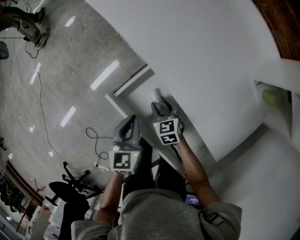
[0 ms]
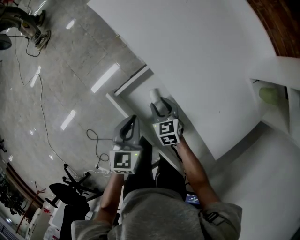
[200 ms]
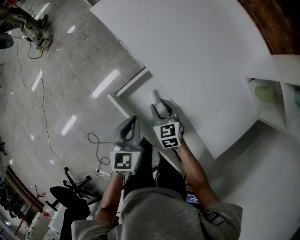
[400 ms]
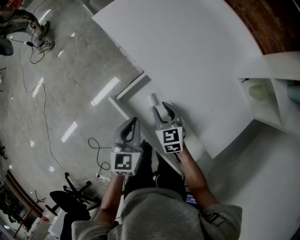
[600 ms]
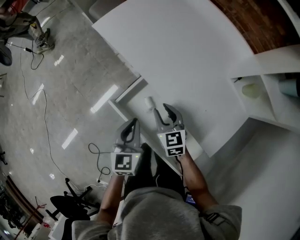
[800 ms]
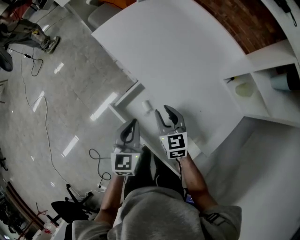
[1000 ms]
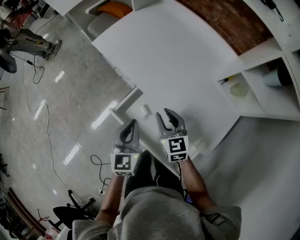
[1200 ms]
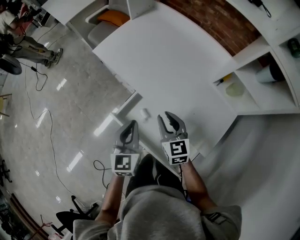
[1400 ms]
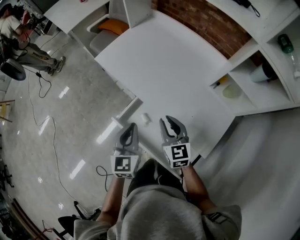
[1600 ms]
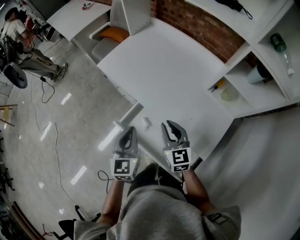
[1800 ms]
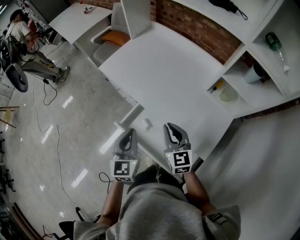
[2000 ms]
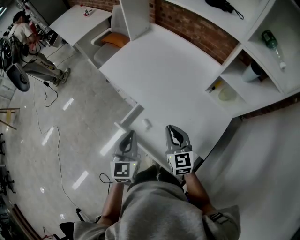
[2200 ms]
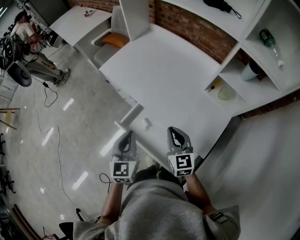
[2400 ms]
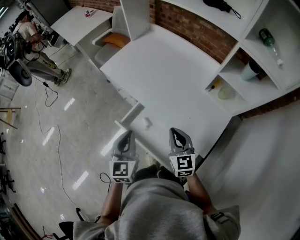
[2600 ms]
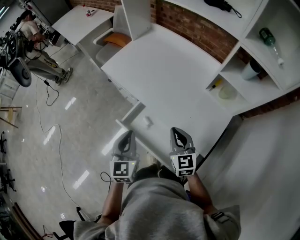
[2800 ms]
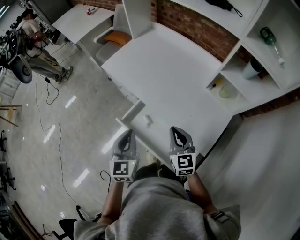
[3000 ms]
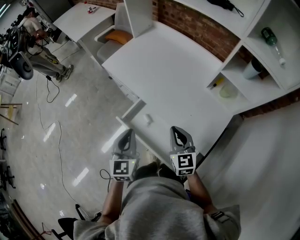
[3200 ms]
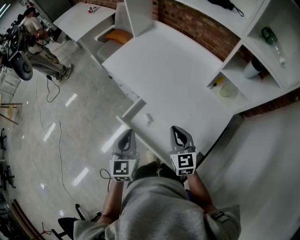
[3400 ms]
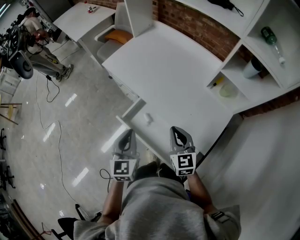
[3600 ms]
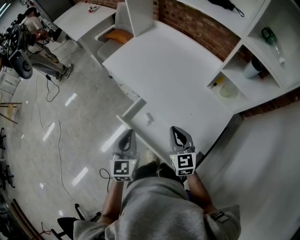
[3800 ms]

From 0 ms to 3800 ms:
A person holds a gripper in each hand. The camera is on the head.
From 0 ms to 1200 ms: The right gripper heads upward, covering approximately 25 cm, and changes its angle by roughly 20 degrees, while the left gripper moves upward, some 15 cm.
From 1200 ms to 2600 ms: The left gripper shifts about 10 cm upward and backward. The right gripper travels upward, backward and to the right by some 15 cm, and closes its fingers.
From 2600 ms to 3800 ms: The grippers make only small movements.

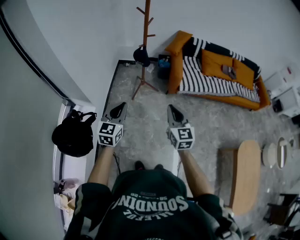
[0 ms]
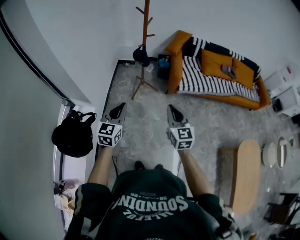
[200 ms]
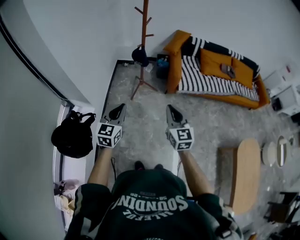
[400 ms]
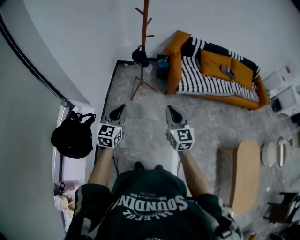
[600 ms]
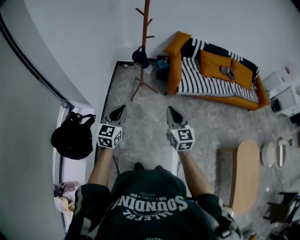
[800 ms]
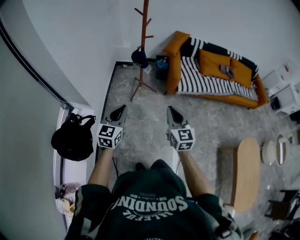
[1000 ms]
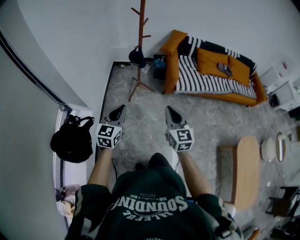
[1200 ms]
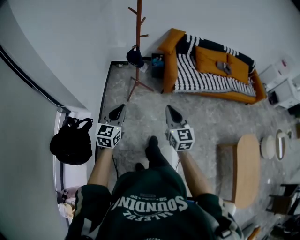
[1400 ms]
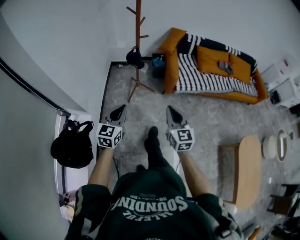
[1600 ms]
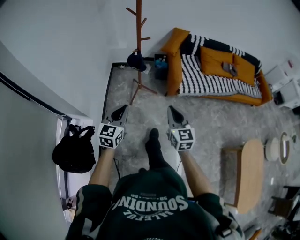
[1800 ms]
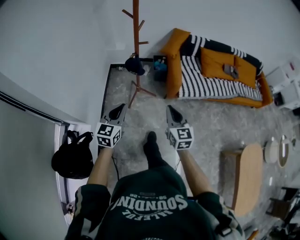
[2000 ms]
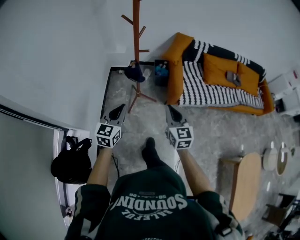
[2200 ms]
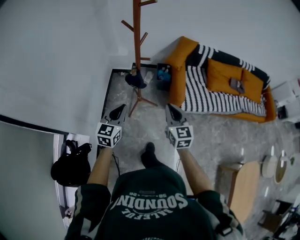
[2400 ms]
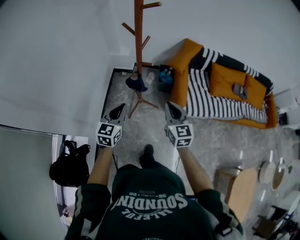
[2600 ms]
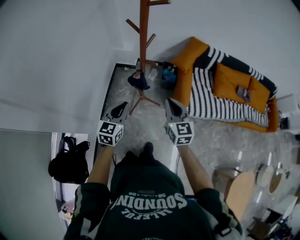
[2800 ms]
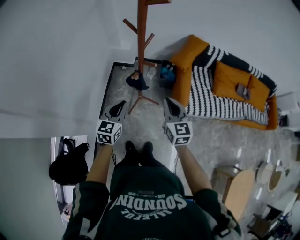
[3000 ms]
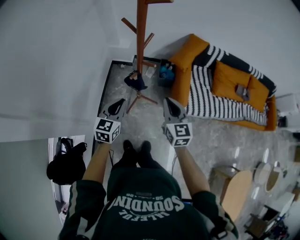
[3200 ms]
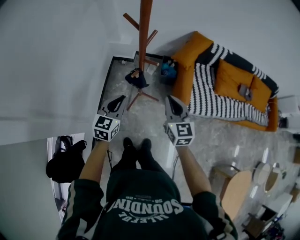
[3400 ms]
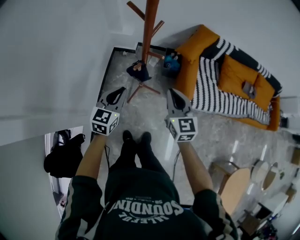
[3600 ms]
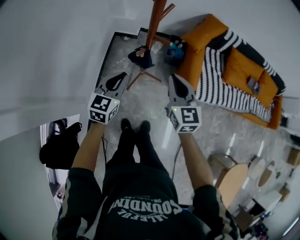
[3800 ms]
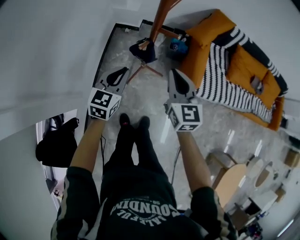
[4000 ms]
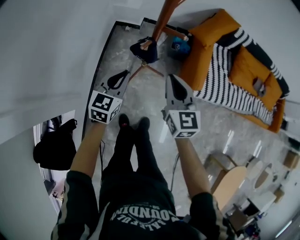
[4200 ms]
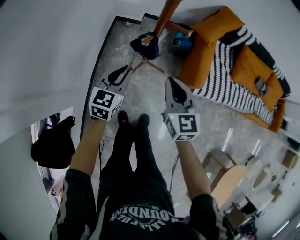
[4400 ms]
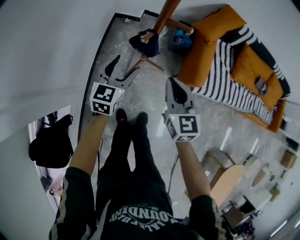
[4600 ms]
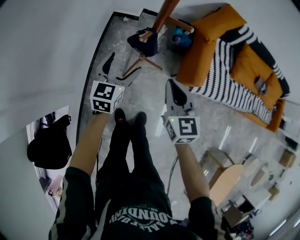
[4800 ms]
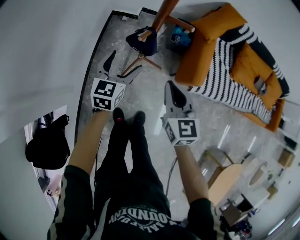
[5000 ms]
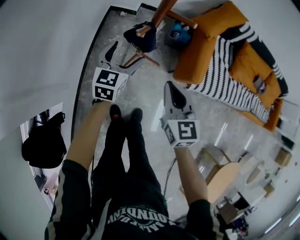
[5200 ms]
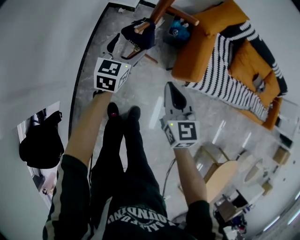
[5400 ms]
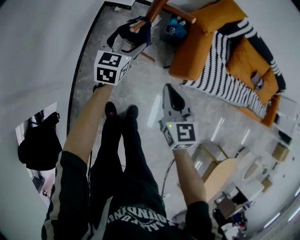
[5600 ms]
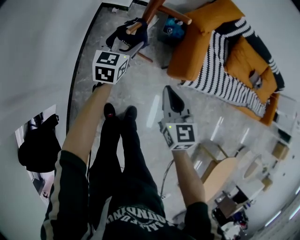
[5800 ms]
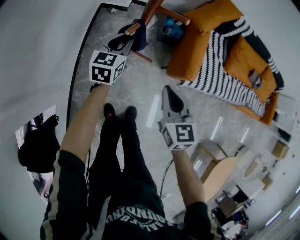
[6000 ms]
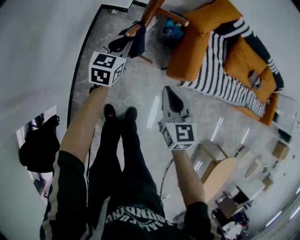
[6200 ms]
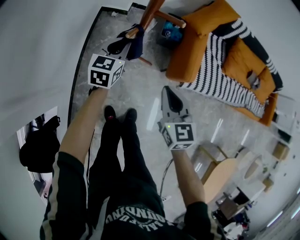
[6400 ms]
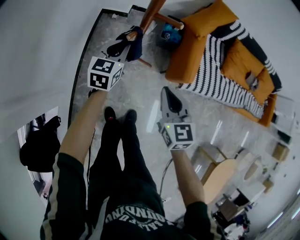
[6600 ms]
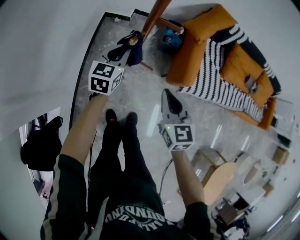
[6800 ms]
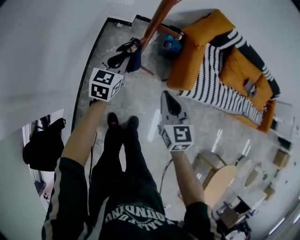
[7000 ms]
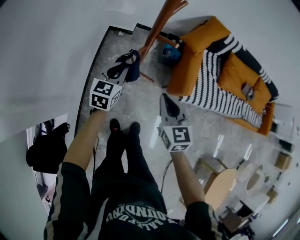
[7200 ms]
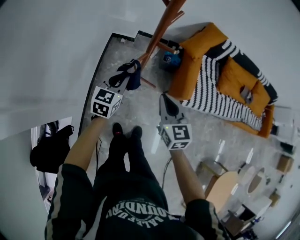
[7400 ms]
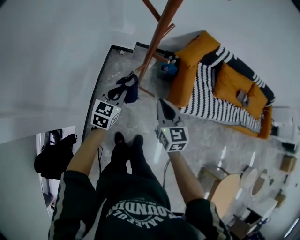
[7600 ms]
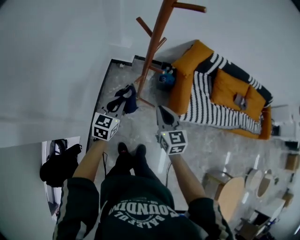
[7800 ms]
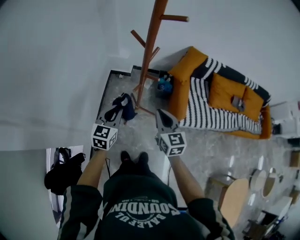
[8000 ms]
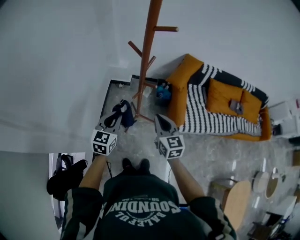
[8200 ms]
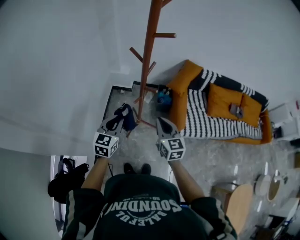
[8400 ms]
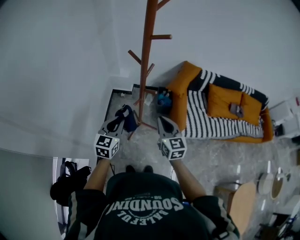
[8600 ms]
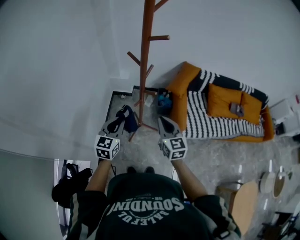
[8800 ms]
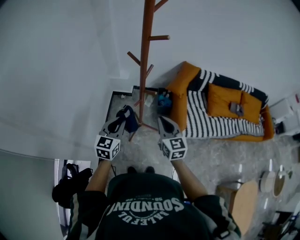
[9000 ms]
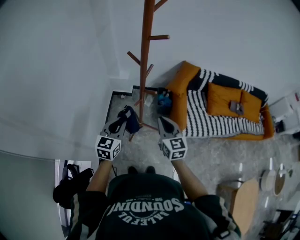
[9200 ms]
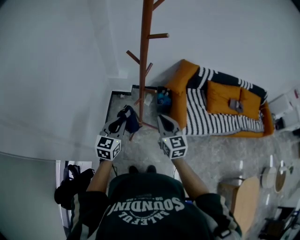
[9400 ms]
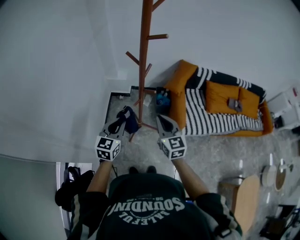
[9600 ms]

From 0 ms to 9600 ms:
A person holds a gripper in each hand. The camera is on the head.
From 0 ms to 1600 ms: The grippers stay close to where they were, moving slightly.
From 1600 ms to 3200 ms: The two grippers go roughly 20 cm forward.
From 3200 ms to 4800 ms: The grippers both shift downward by approximately 10 cm. The left gripper opens.
From 4800 ms to 6400 ms: The left gripper travels forward by roughly 5 cm, and closes.
From 6400 ms to 8000 ms: The left gripper moves upward, backward and to the left, some 15 cm; the right gripper goes approximately 5 cm upward.
From 8000 ms to 9600 ms: The grippers make only small movements.

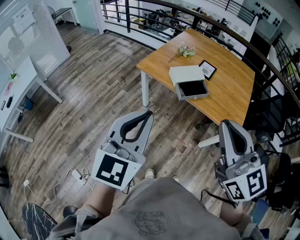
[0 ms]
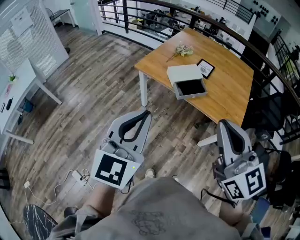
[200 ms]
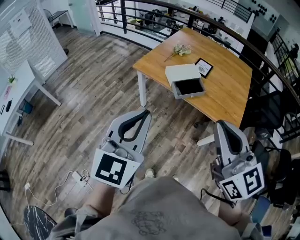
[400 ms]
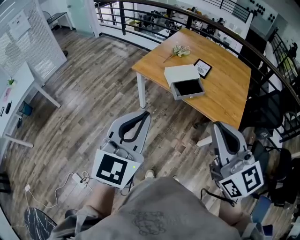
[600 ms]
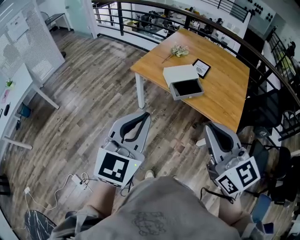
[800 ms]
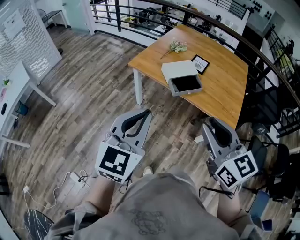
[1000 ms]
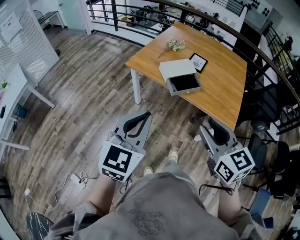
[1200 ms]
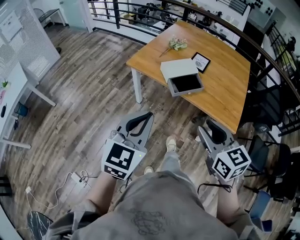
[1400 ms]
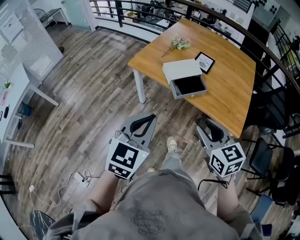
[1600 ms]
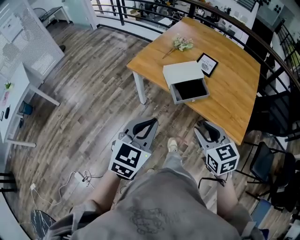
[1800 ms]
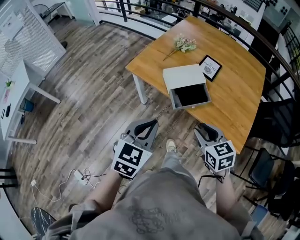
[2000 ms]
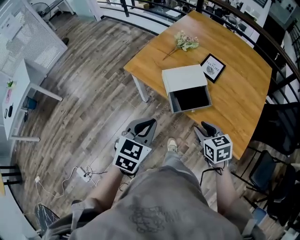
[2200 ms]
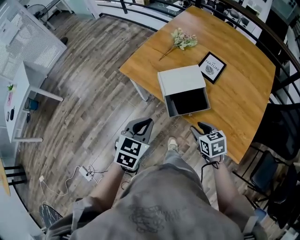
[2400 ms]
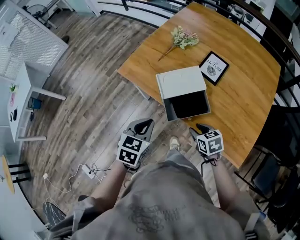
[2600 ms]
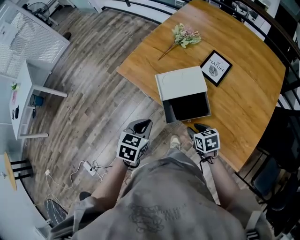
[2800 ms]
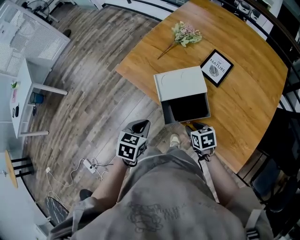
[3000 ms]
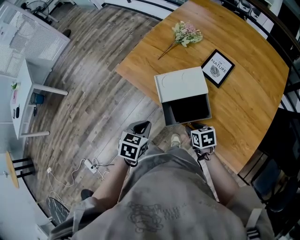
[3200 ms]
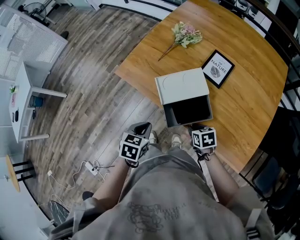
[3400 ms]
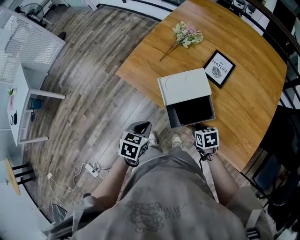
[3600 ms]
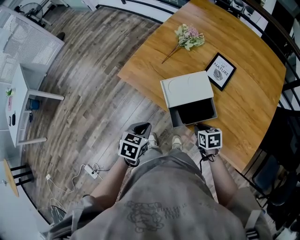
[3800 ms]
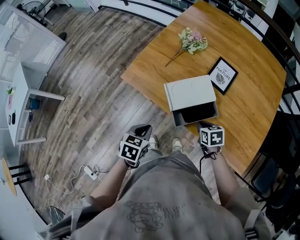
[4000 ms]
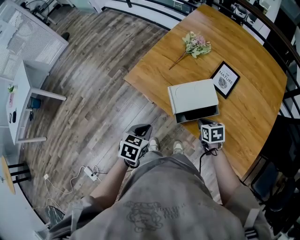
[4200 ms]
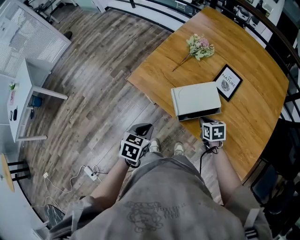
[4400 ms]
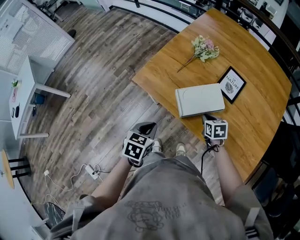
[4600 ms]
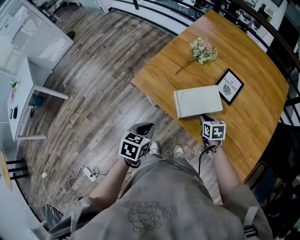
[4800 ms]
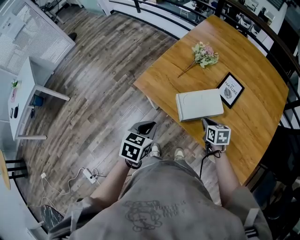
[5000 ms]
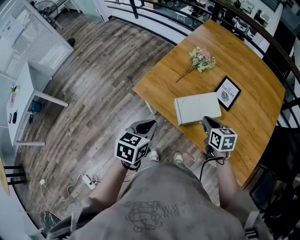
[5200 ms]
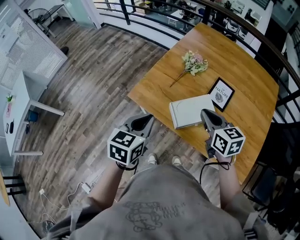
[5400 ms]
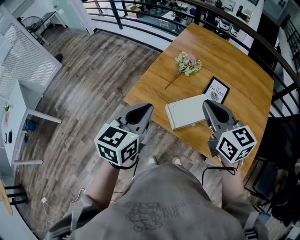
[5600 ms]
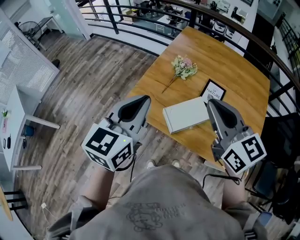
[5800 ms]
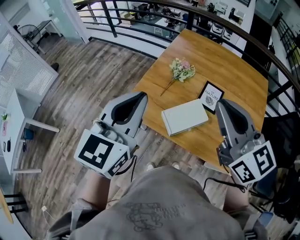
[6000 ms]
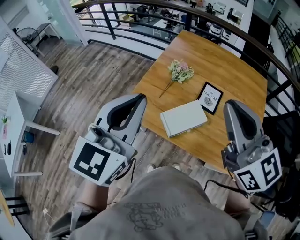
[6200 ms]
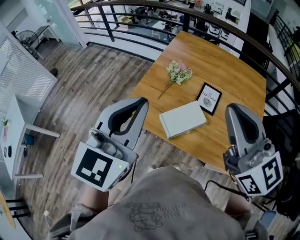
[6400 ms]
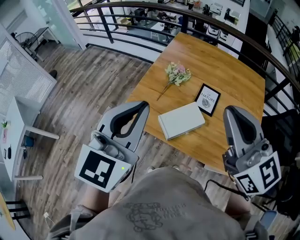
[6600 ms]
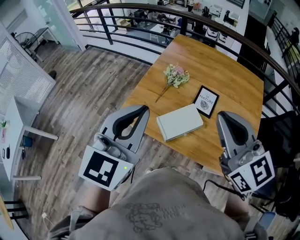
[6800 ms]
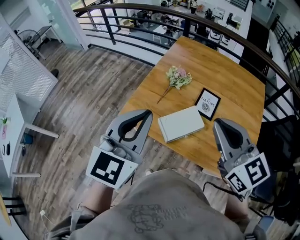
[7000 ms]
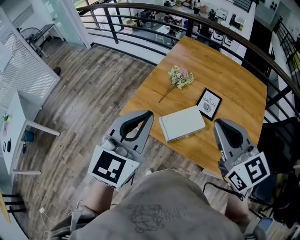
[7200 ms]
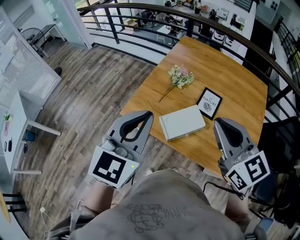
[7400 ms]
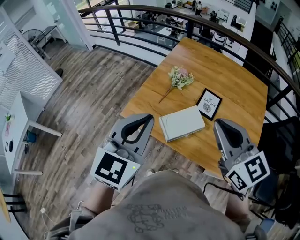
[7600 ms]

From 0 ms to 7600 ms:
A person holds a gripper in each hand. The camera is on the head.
From 0 ms to 1600 ms: The left gripper shifts some 15 cm downward and forward, while the right gripper heads downward and forward, covering roughly 20 cm, rotates roughly 30 degrees, and opens its fingers.
From 1600 ms to 3000 ms: The two grippers go about 35 cm downward and forward. The left gripper tilts its fingers some 30 degrees downward, while the right gripper swivels some 40 degrees.
From 3000 ms to 4600 ms: The right gripper travels forward by about 10 cm, and closes. Meanwhile the left gripper heads to the left, covering approximately 5 cm.
From 4600 ms to 6000 ms: The grippers both shift upward by approximately 40 cm. The left gripper points its fingers about 40 degrees further upward, while the right gripper tips its fingers upward by about 50 degrees.
From 6000 ms to 7600 ms: The left gripper moves some 5 cm. Meanwhile the right gripper changes place by about 5 cm.

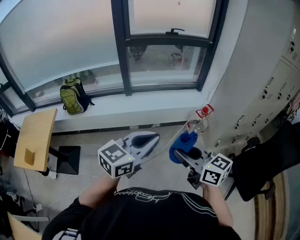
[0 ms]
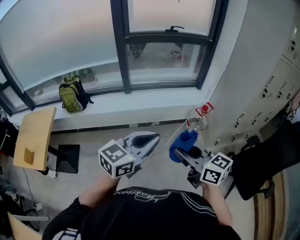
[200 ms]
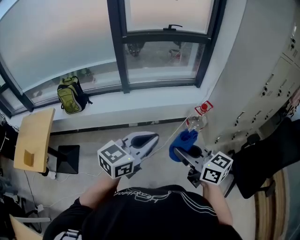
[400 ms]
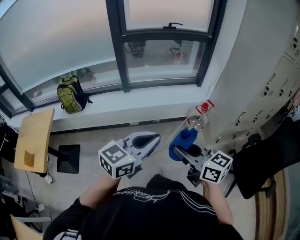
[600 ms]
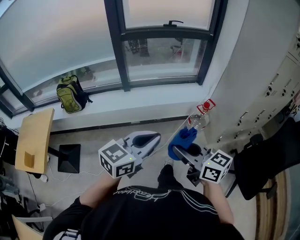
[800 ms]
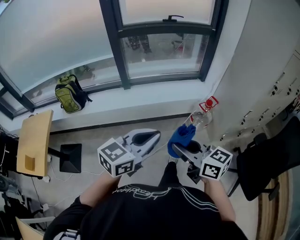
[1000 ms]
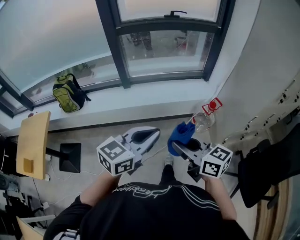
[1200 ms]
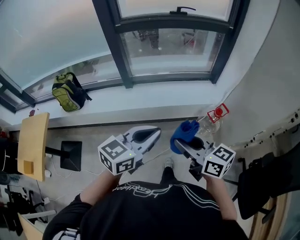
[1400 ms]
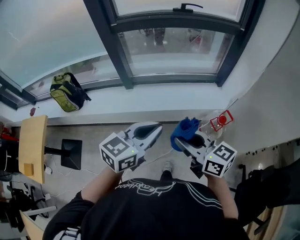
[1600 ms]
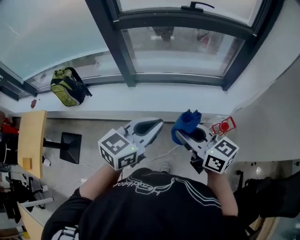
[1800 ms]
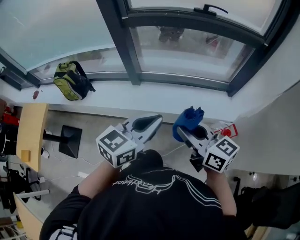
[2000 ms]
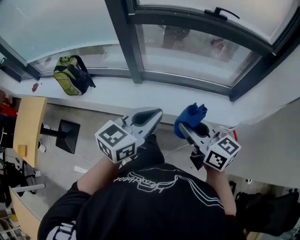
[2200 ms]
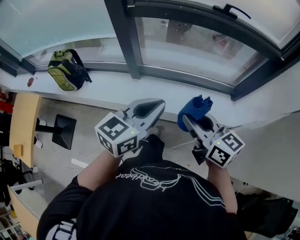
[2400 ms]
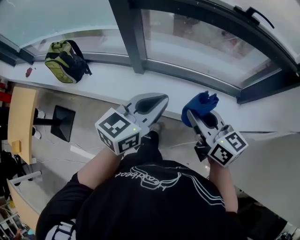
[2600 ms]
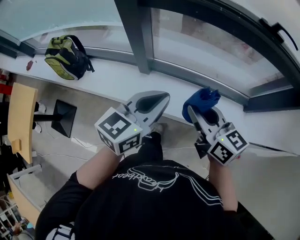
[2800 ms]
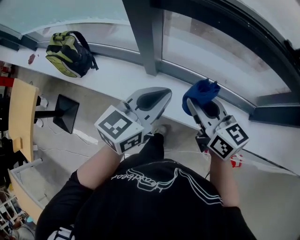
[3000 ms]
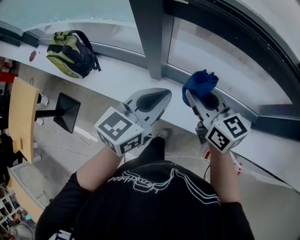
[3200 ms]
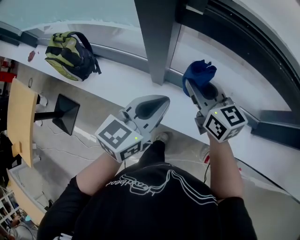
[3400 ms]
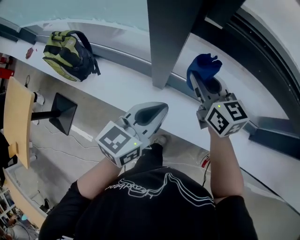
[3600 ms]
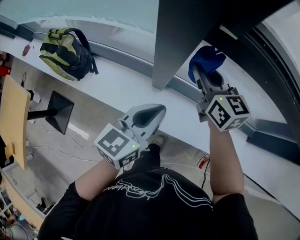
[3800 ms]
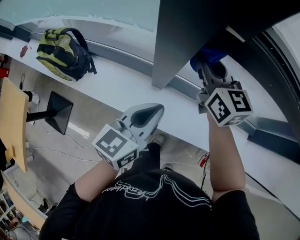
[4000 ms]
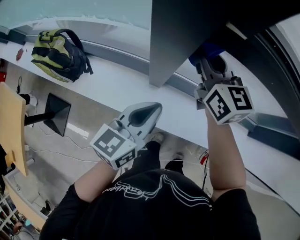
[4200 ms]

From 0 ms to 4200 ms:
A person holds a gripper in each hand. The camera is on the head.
From 0 ms to 1400 ms: Both grippers move forward, roughly 25 cm.
From 1400 ms to 2800 ms: The two grippers travel together, forward, some 50 cm. The left gripper rotates roughly 20 degrees.
From 2800 ms to 4200 ms: The right gripper goes about 40 cm forward and to the left. The left gripper heads forward, to the left and downward, covering roughly 25 cm.
